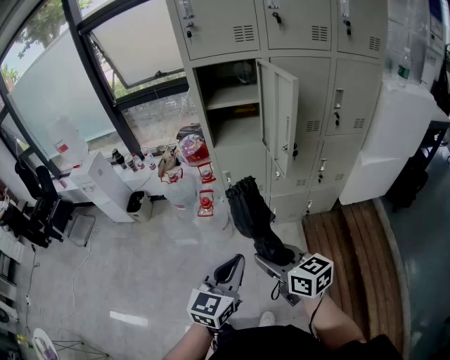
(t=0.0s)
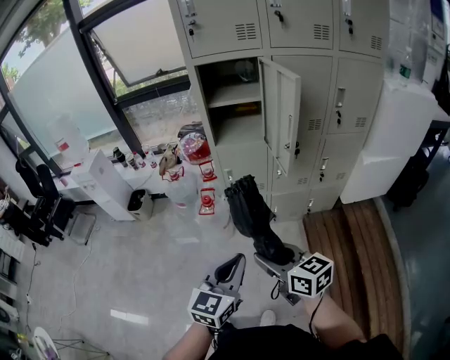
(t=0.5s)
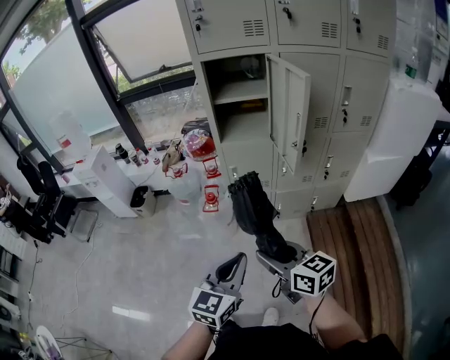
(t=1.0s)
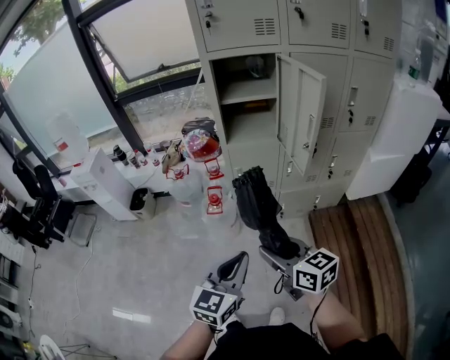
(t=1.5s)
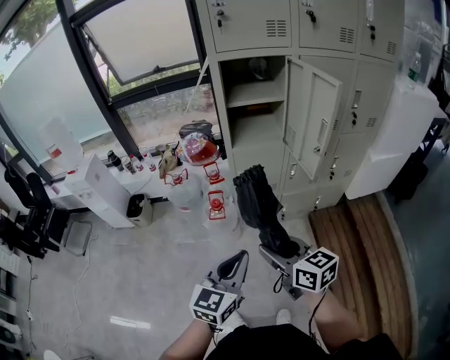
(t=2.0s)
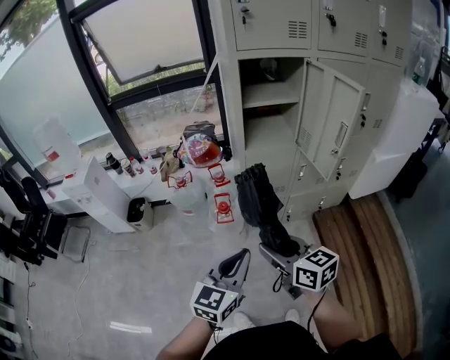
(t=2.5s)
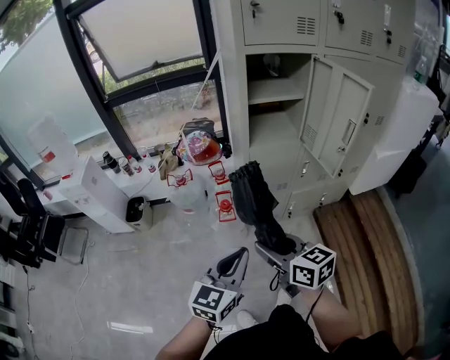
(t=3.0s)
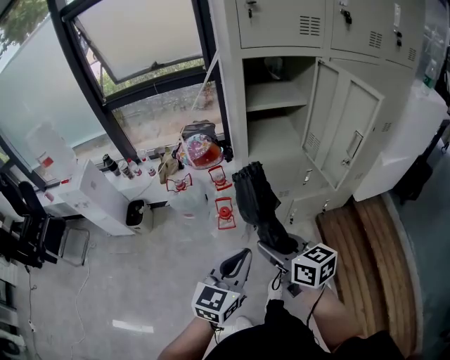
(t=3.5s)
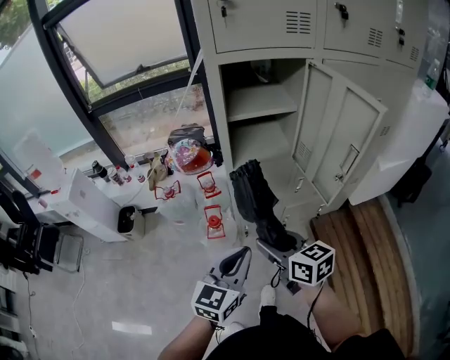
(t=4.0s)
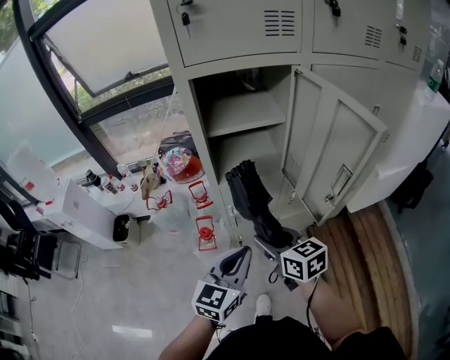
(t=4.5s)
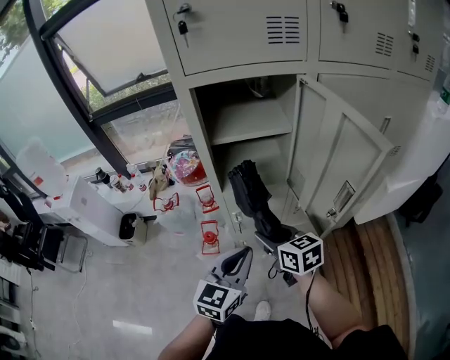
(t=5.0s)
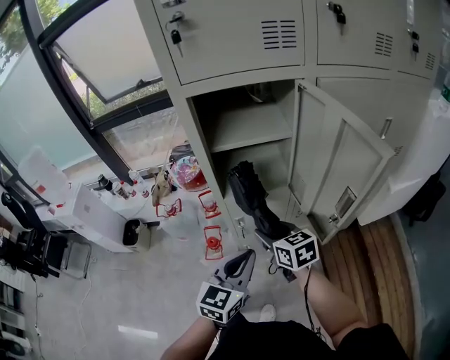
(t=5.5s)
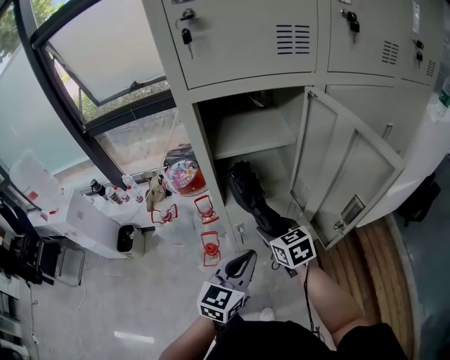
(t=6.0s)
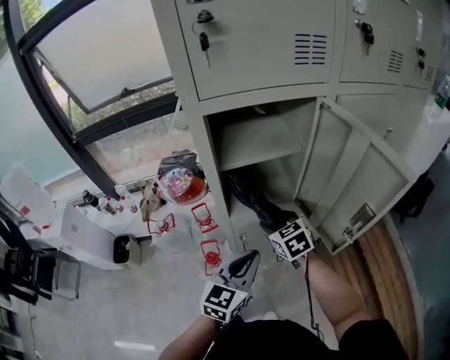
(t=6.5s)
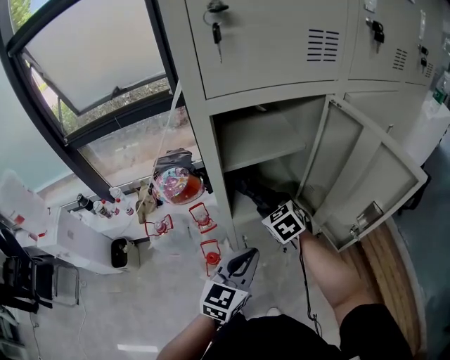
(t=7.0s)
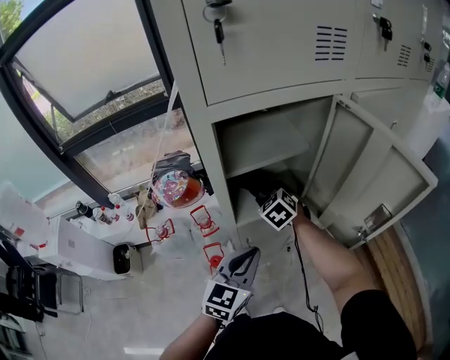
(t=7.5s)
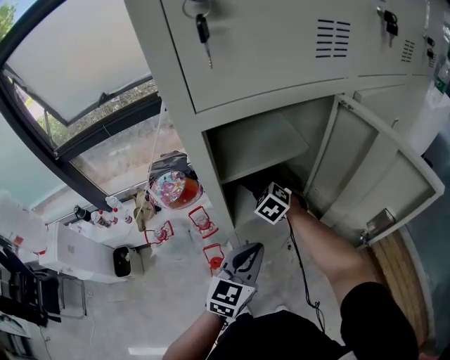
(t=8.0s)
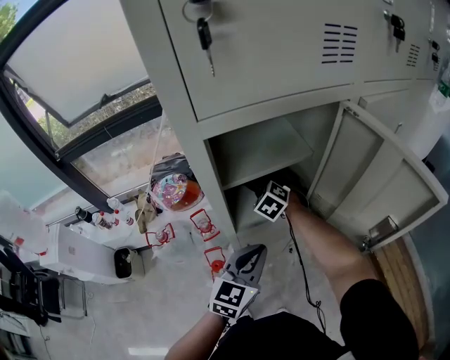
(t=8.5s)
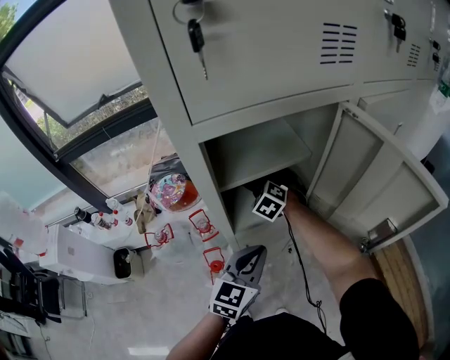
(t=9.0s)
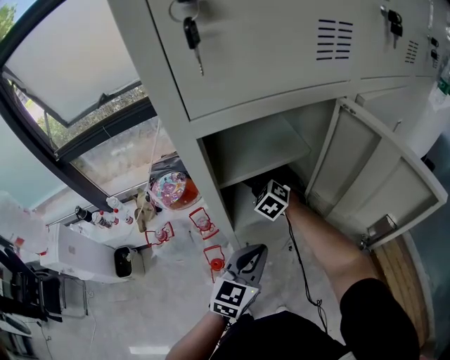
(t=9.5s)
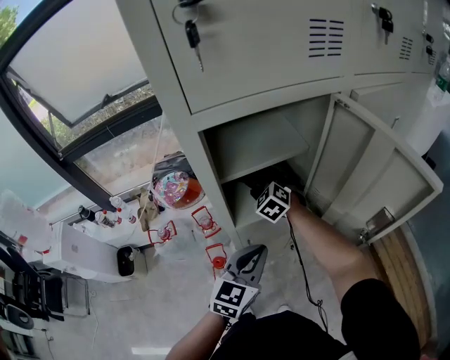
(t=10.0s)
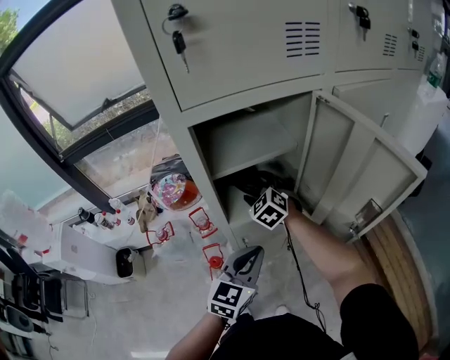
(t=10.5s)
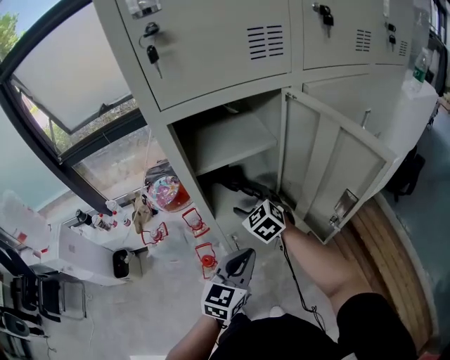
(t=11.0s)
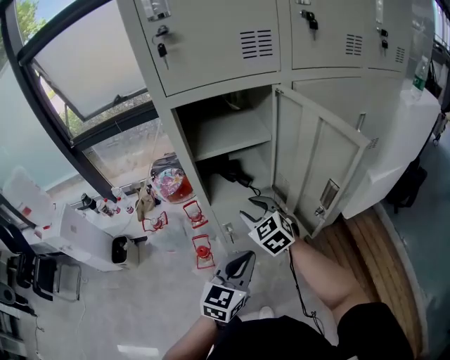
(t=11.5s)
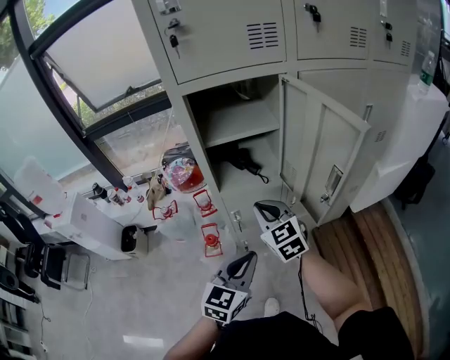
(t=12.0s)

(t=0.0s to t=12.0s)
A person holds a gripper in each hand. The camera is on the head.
t=0.0s - t=2.0s: The two grippers go approximately 15 cm to the left and forward.
t=2.0s - t=4.0s: The two grippers go about 15 cm forward.
t=4.0s - t=6.0s: The right gripper shifts about 20 cm forward, and rotates roughly 20 degrees, while the left gripper is displaced forward and to the right by about 15 cm.
t=6.0s - t=8.0s: The right gripper goes about 20 cm forward, and turns by some 40 degrees, while the left gripper heads forward, covering about 10 cm.
t=8.0s - t=10.0s: The right gripper opens its fingers.
t=10.0s - t=12.0s: The right gripper moves backward, approximately 25 cm, swivels roughly 30 degrees, and closes its fingers. Meanwhile the left gripper is displaced backward and to the right by about 15 cm.

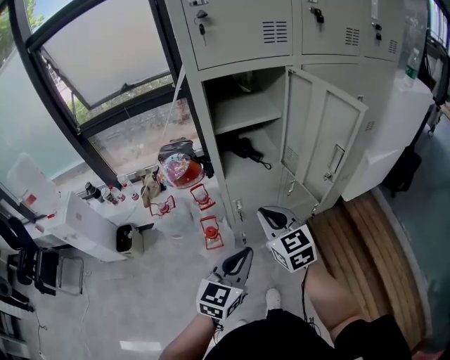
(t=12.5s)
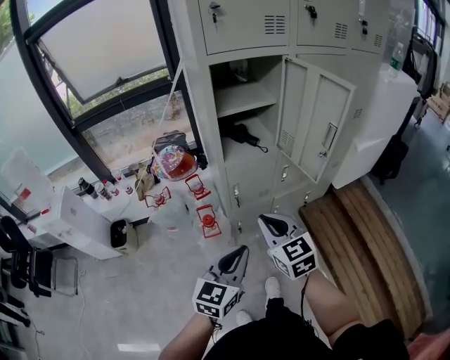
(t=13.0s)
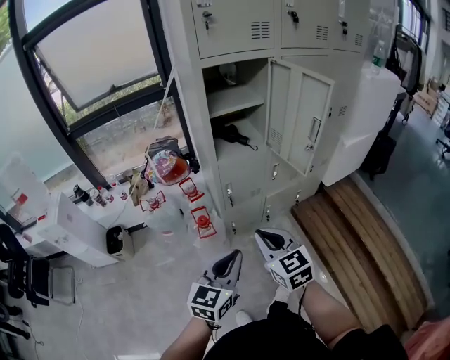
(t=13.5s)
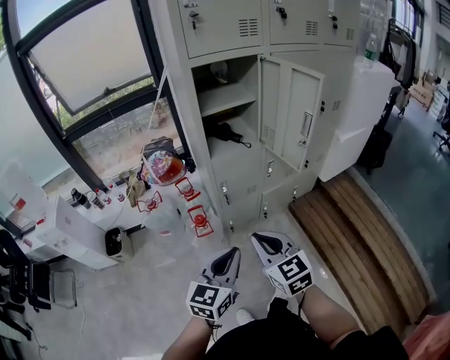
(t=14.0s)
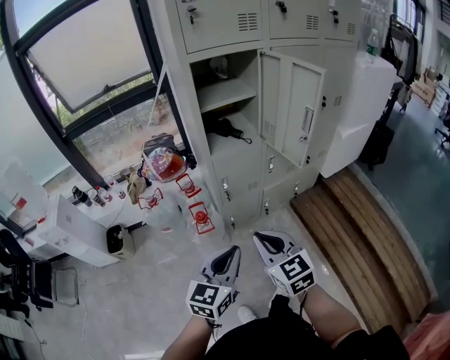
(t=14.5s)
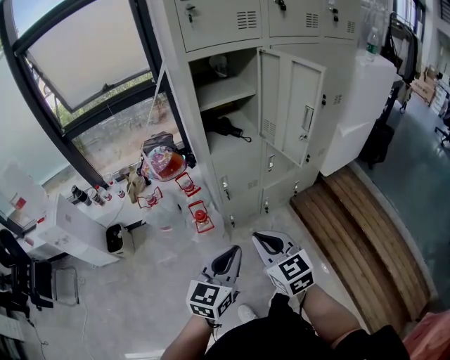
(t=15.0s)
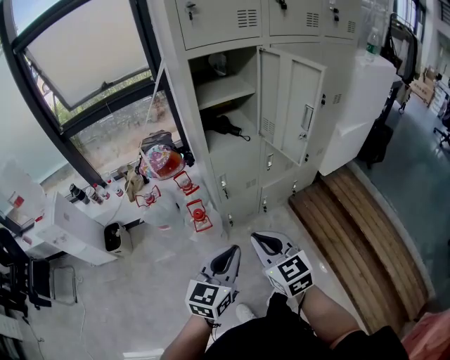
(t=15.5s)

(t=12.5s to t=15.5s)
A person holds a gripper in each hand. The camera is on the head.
t=12.5s - t=14.0s: The right gripper moves backward, about 20 cm. The left gripper is displaced backward by roughly 10 cm.
t=14.0s - t=15.5s: Both grippers stay put.

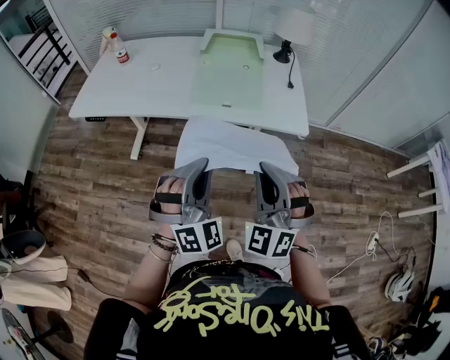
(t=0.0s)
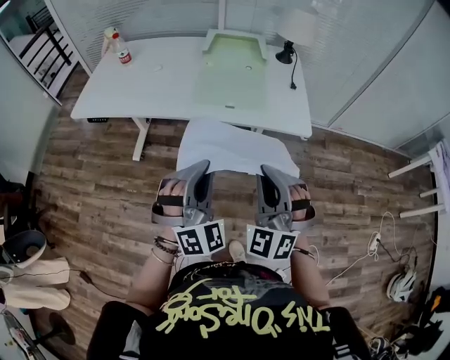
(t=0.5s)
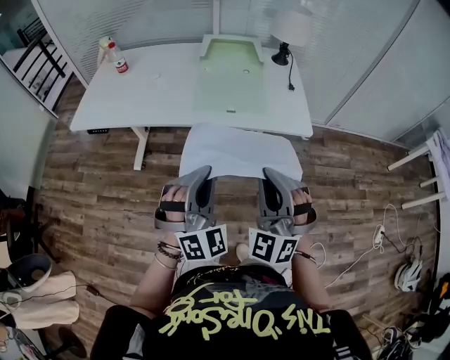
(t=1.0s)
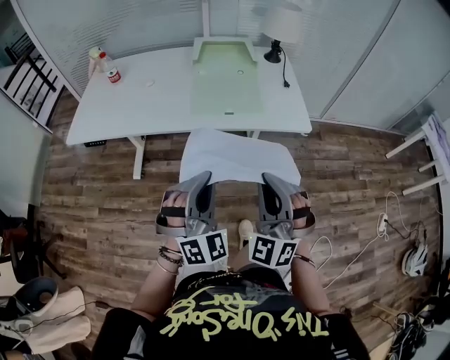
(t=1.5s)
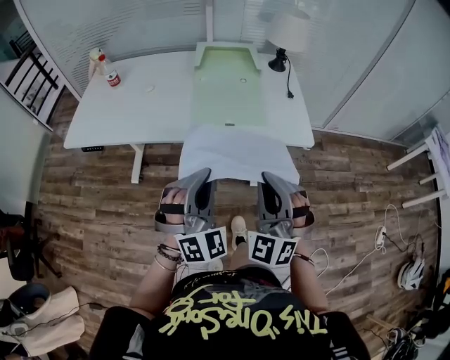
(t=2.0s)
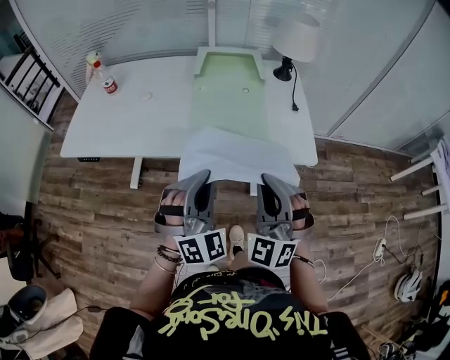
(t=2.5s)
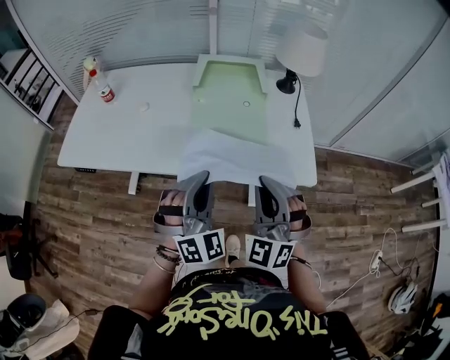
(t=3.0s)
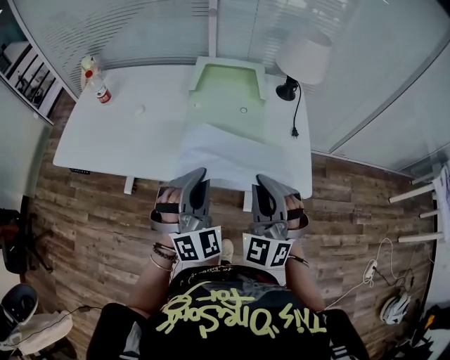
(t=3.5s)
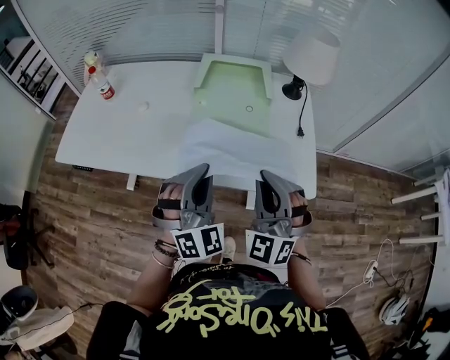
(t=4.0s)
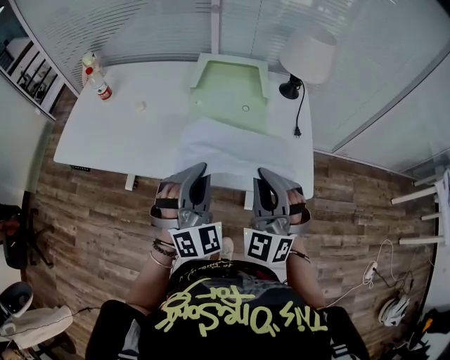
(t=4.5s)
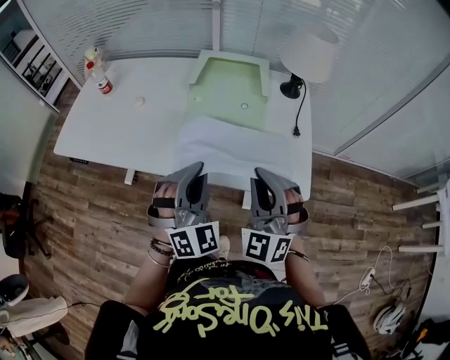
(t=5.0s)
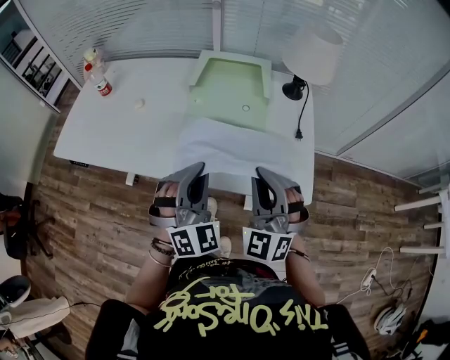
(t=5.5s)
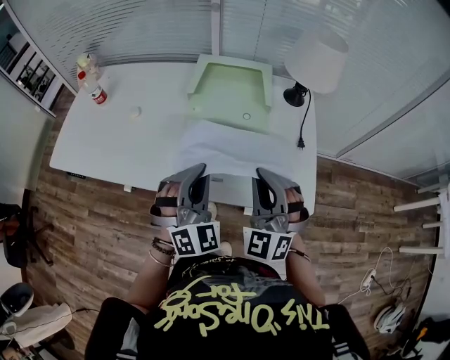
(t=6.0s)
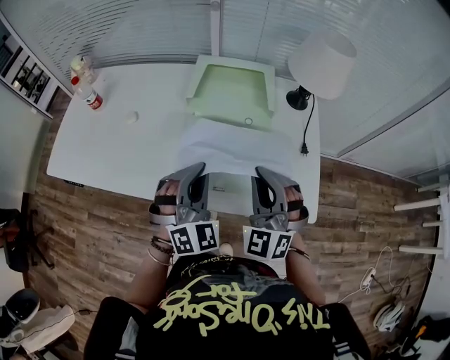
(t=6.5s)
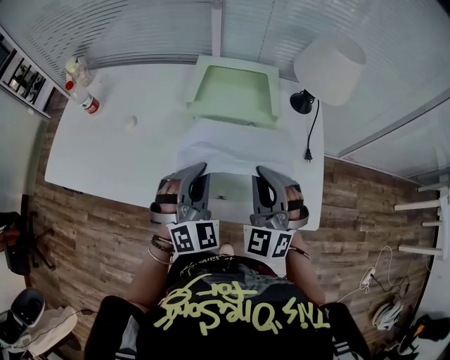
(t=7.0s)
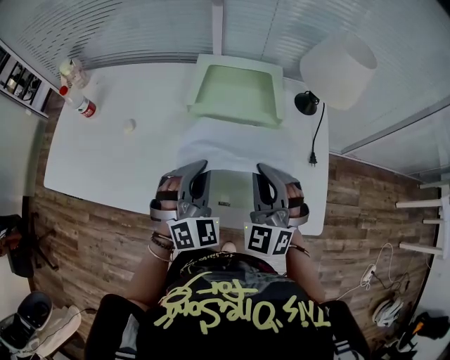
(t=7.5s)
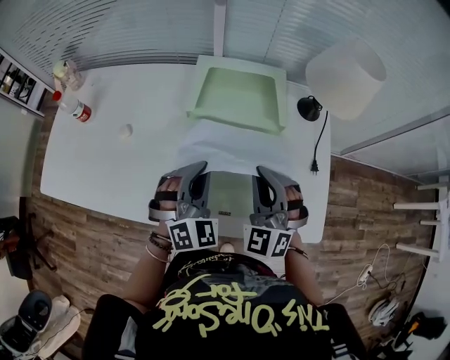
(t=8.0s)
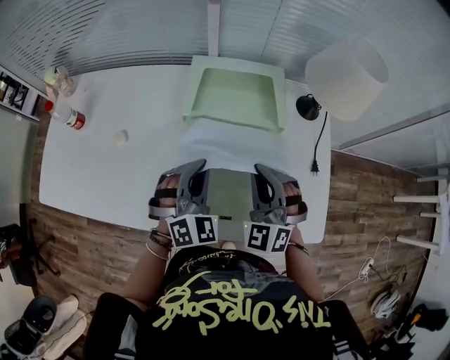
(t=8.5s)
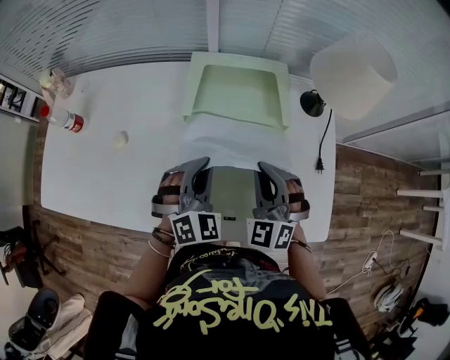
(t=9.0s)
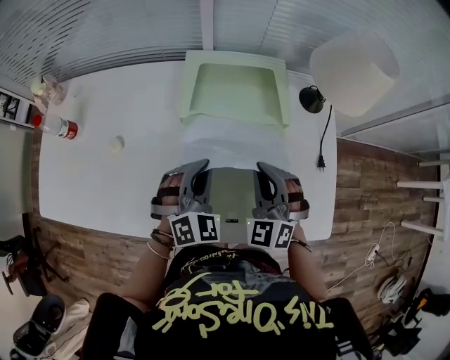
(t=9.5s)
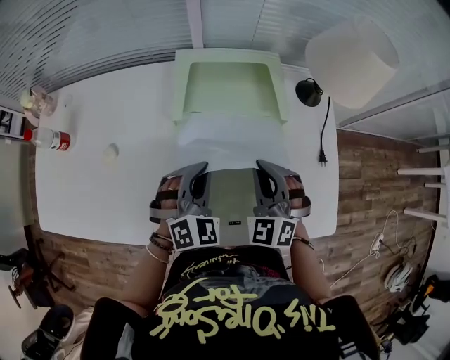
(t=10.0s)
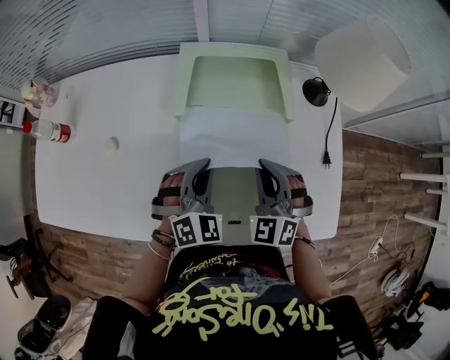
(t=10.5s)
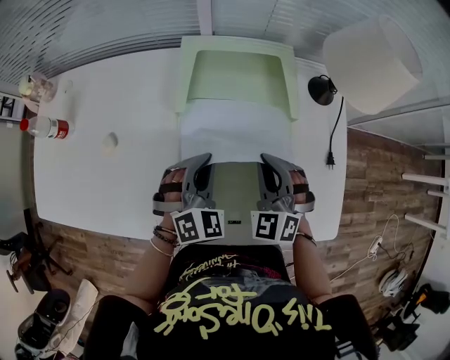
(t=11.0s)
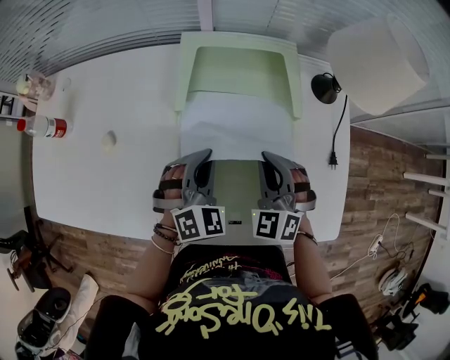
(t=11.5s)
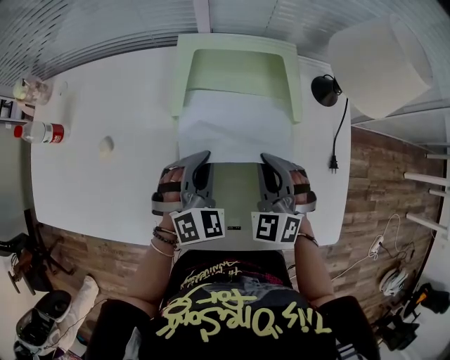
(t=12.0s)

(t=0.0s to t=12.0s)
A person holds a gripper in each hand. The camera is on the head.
t=0.0s - t=2.0s: The right gripper ends up roughly 5 cm from where it was. Meanwhile the left gripper moves forward, about 5 cm.
t=2.0s - t=4.0s: The grippers both shift forward by approximately 15 cm.
t=4.0s - t=6.0s: Both grippers travel together forward, about 5 cm.
t=6.0s - t=8.0s: Both grippers move forward, some 10 cm.
t=8.0s - t=10.0s: Both grippers travel together downward, roughly 5 cm.
t=10.0s - t=12.0s: The grippers stay close to where they were, moving slightly.
